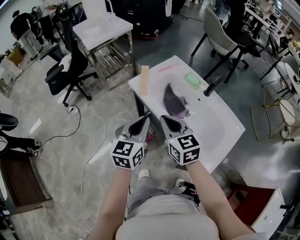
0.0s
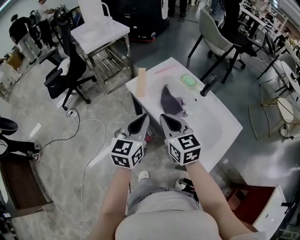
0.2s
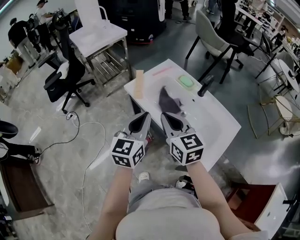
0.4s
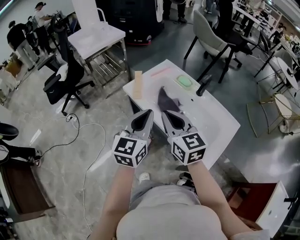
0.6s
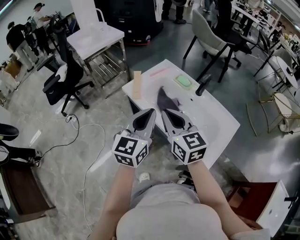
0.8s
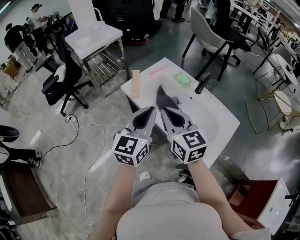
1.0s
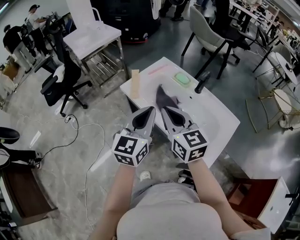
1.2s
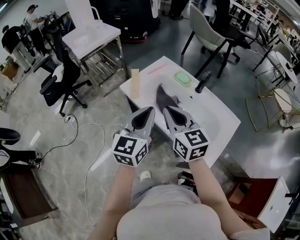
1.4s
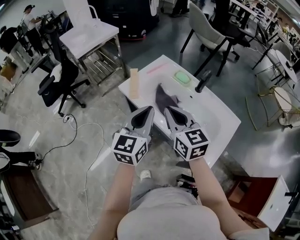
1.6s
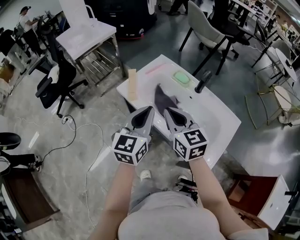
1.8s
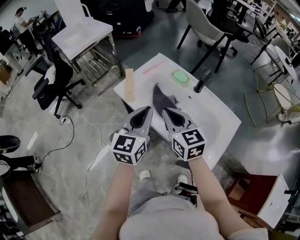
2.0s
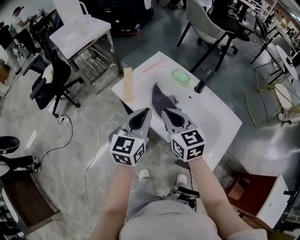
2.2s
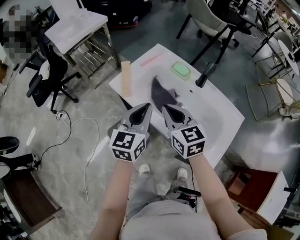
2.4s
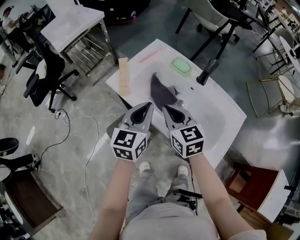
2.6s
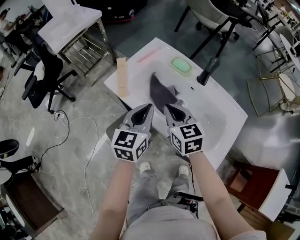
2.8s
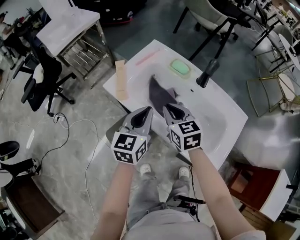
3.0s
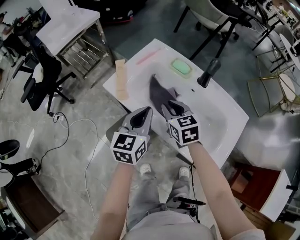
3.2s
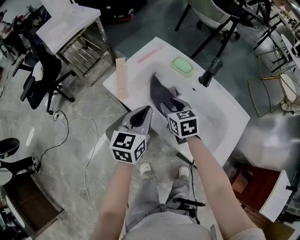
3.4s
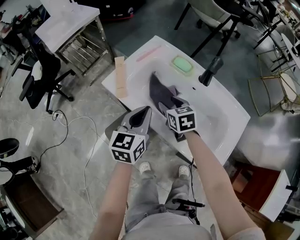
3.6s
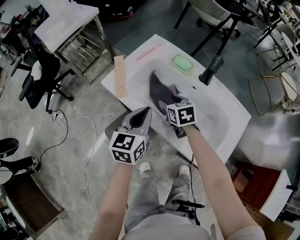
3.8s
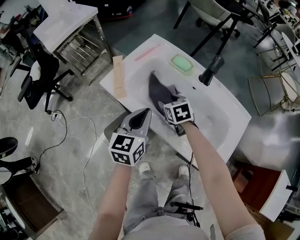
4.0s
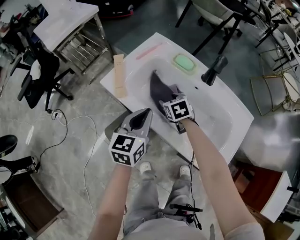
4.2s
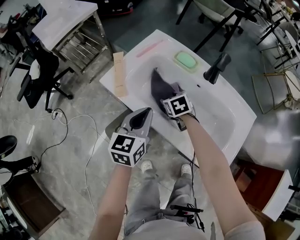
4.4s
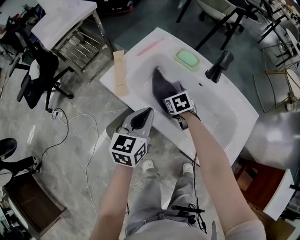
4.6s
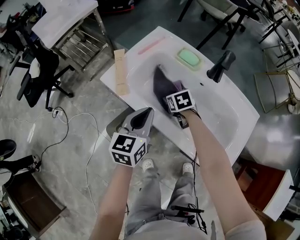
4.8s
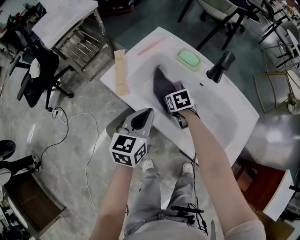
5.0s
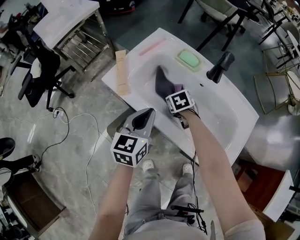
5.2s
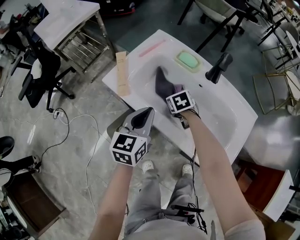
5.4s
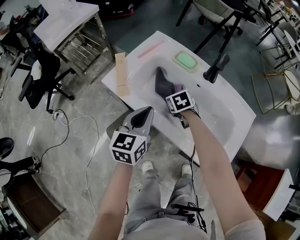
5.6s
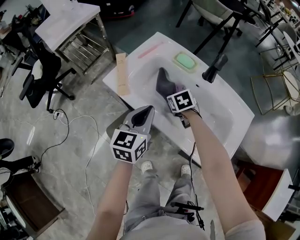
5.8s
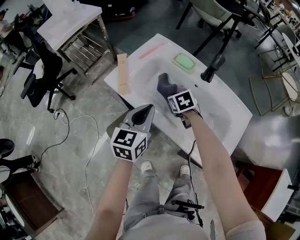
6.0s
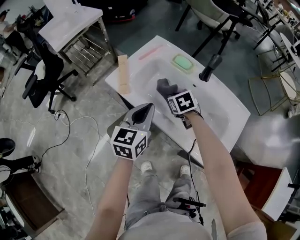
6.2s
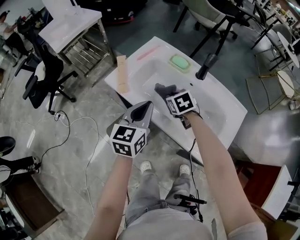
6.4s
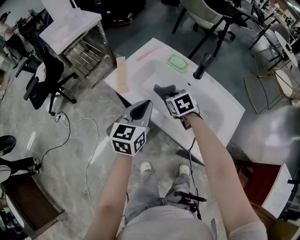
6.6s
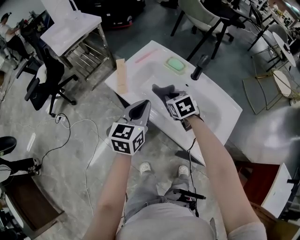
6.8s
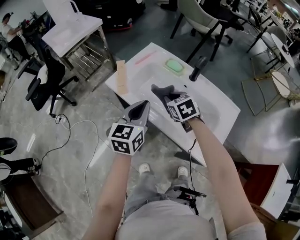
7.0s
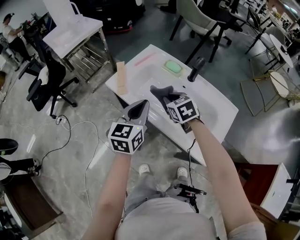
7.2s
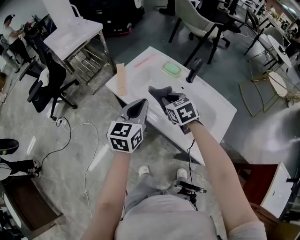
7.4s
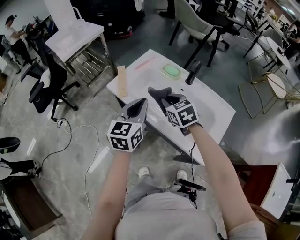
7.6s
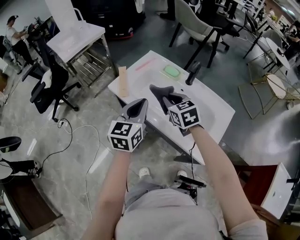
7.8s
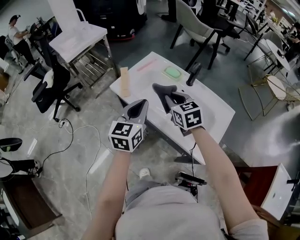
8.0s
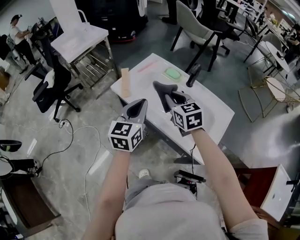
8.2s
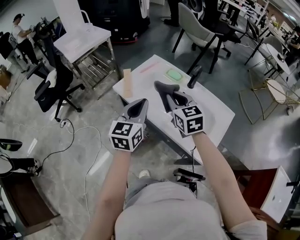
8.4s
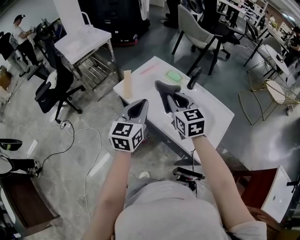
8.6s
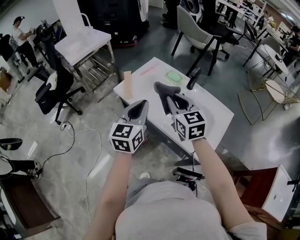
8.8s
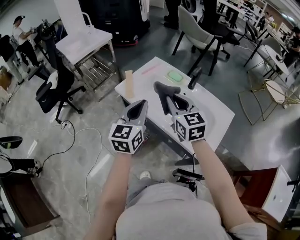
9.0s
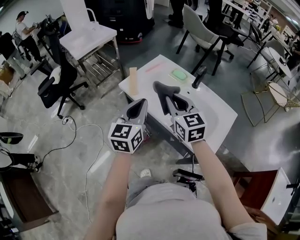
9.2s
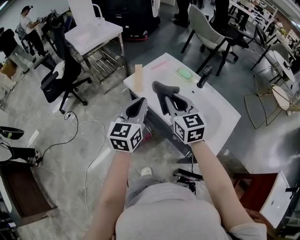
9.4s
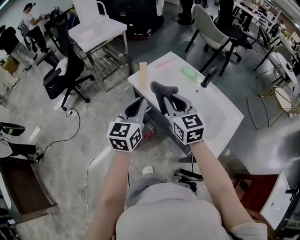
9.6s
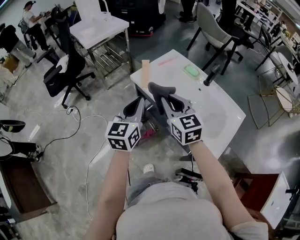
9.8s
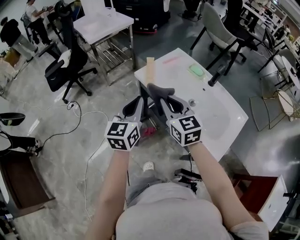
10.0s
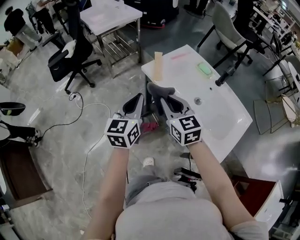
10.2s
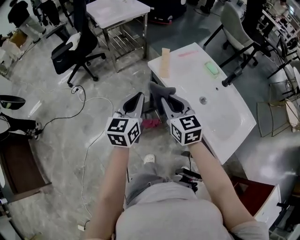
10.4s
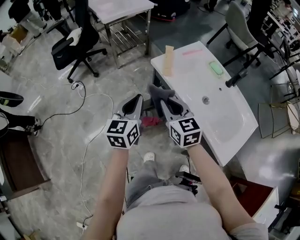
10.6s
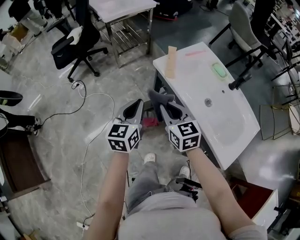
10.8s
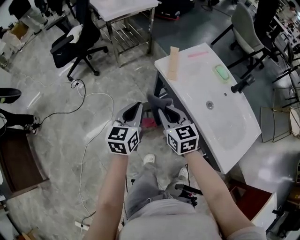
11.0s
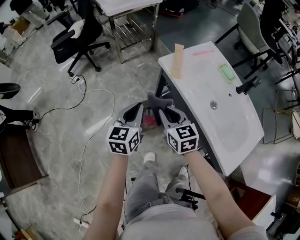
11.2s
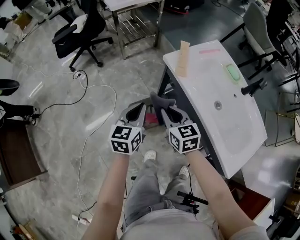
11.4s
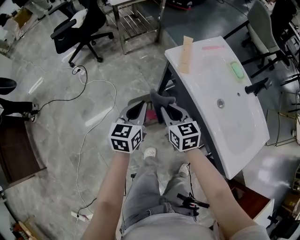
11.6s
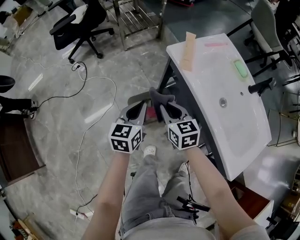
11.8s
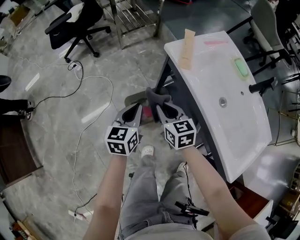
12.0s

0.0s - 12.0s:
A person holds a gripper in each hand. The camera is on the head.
0.0s - 1.6s: The left gripper travels upward by approximately 5 cm. The right gripper moves about 5 cm.
1.6s - 3.0s: The grippers both shift downward and forward by approximately 15 cm.
3.0s - 4.4s: The right gripper shifts roughly 20 cm downward and forward, rotates some 30 degrees, and opens its fingers, while the left gripper moves approximately 5 cm.
4.4s - 6.0s: The right gripper closes its fingers.
6.0s - 7.6s: The left gripper goes approximately 10 cm upward, while the right gripper moves upward and backward, roughly 20 cm, and turns by approximately 20 degrees.
7.6s - 9.0s: The right gripper goes roughly 10 cm upward and backward, and changes its angle by approximately 30 degrees. Meanwhile the left gripper changes place by about 5 cm.
9.0s - 10.4s: The left gripper is displaced to the left by approximately 15 cm; the right gripper shifts approximately 20 cm to the left and downward.
10.4s - 12.0s: Both grippers travel together downward, roughly 20 cm.

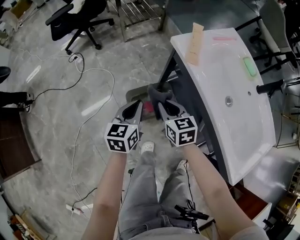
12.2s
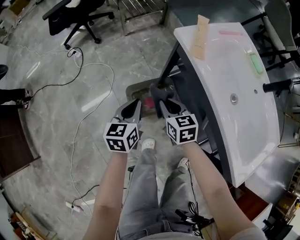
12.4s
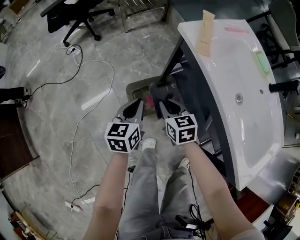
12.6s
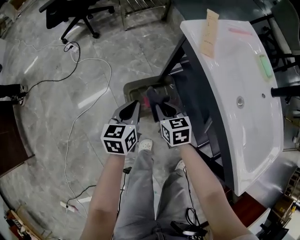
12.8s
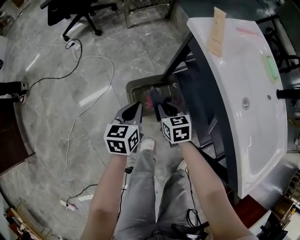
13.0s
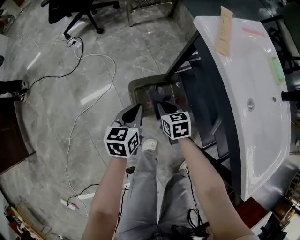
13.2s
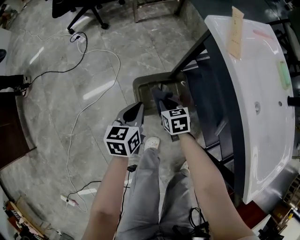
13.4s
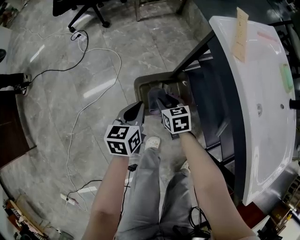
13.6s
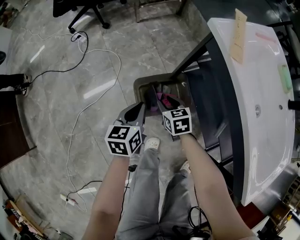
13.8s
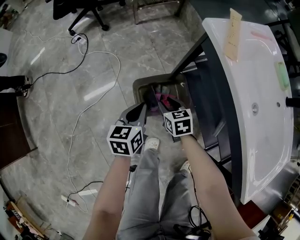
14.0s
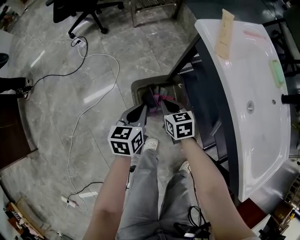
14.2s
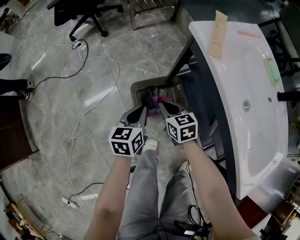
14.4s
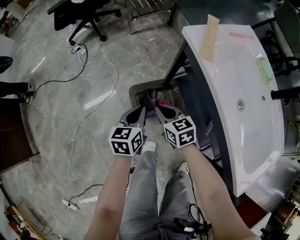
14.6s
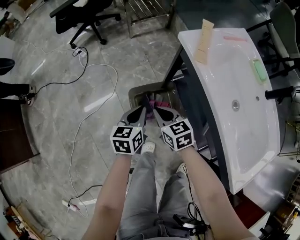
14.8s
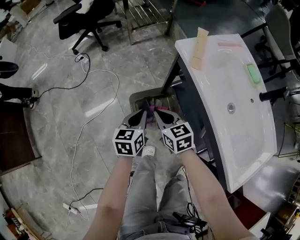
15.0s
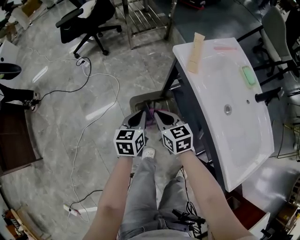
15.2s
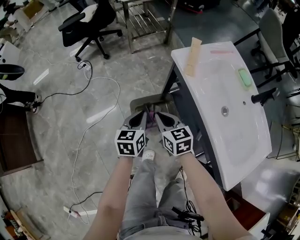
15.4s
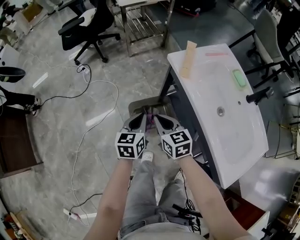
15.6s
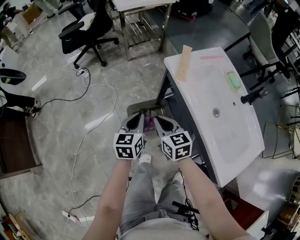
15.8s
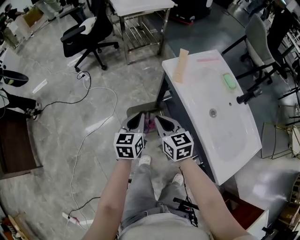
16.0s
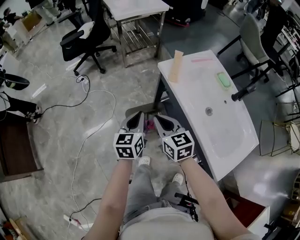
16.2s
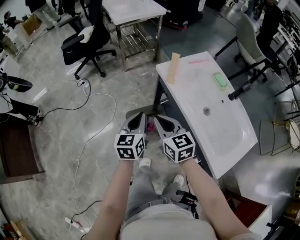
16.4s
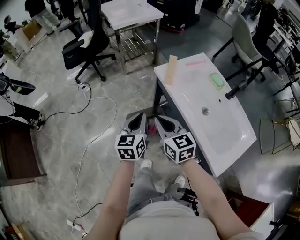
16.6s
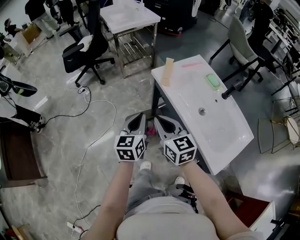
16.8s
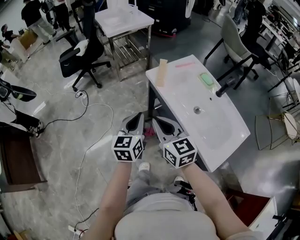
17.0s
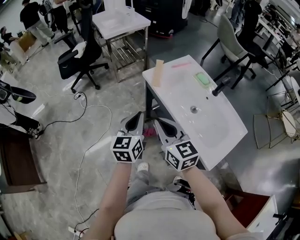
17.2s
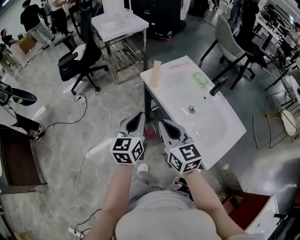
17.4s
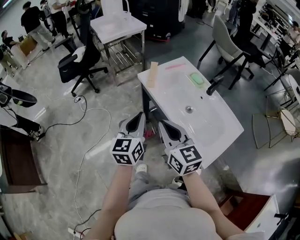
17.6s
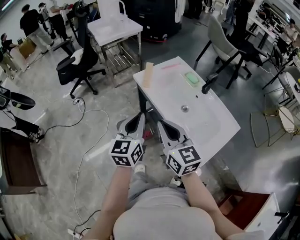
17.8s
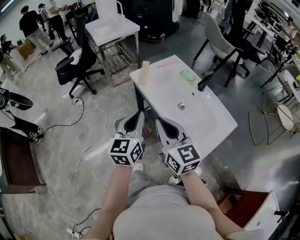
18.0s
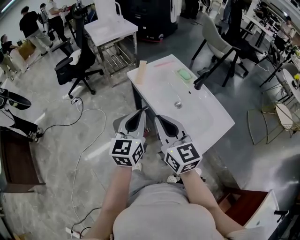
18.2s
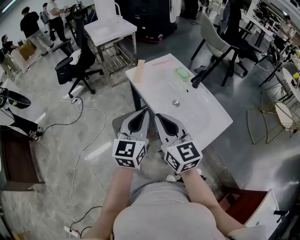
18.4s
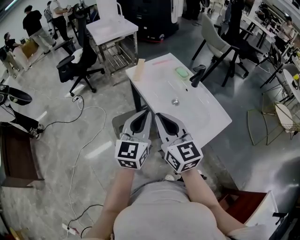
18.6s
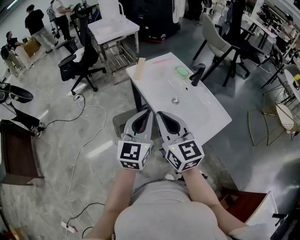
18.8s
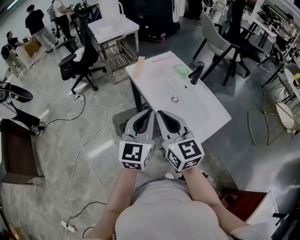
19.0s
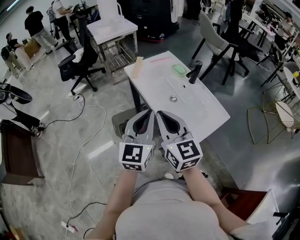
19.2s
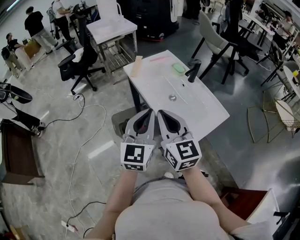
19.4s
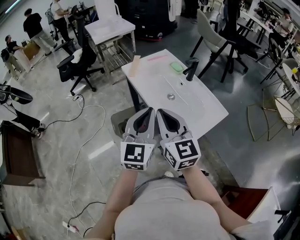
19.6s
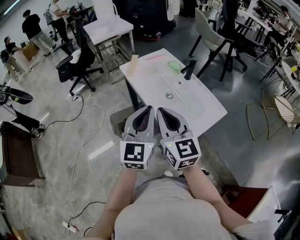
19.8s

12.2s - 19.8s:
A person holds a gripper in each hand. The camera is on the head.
12.2s - 13.8s: Both grippers travel together downward, approximately 15 cm. The right gripper opens.
13.8s - 15.2s: The left gripper travels upward by roughly 10 cm, while the right gripper shifts approximately 20 cm upward, and closes its fingers.
15.2s - 16.8s: The two grippers go some 20 cm upward. The right gripper turns by about 20 degrees.
16.8s - 18.2s: The right gripper travels to the right, backward and upward by about 20 cm; the left gripper shifts roughly 20 cm to the right, upward and backward.
18.2s - 19.8s: The grippers both shift to the right and backward by some 10 cm.

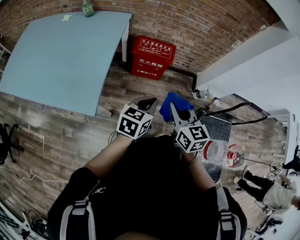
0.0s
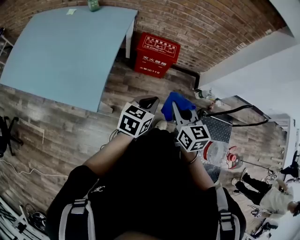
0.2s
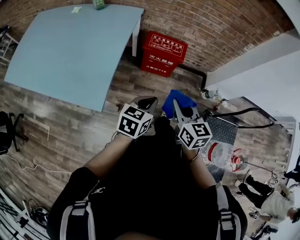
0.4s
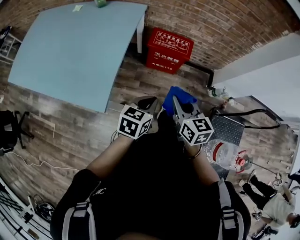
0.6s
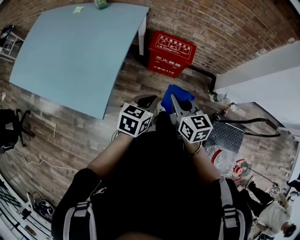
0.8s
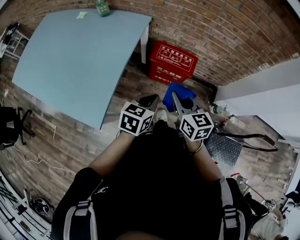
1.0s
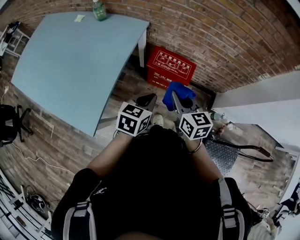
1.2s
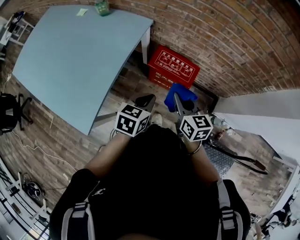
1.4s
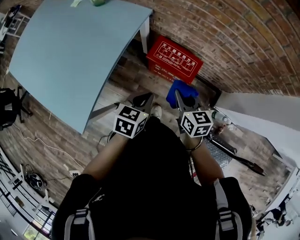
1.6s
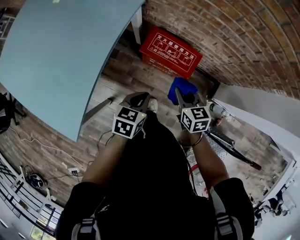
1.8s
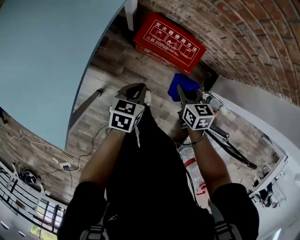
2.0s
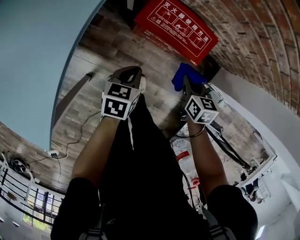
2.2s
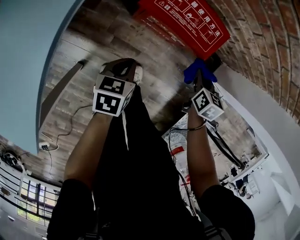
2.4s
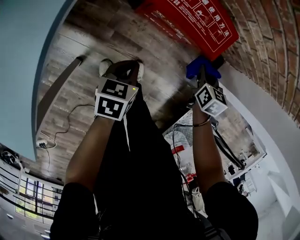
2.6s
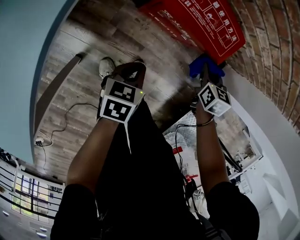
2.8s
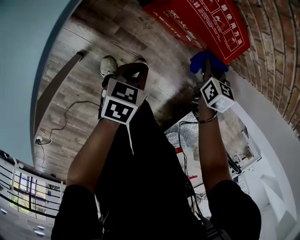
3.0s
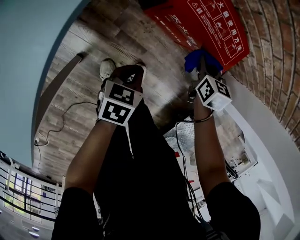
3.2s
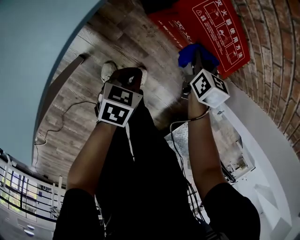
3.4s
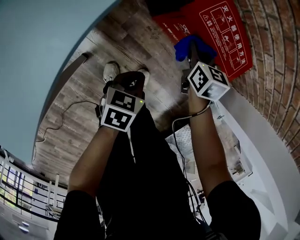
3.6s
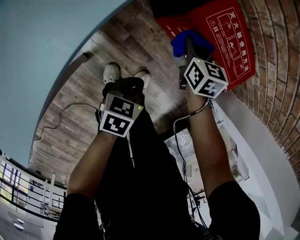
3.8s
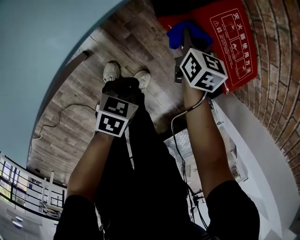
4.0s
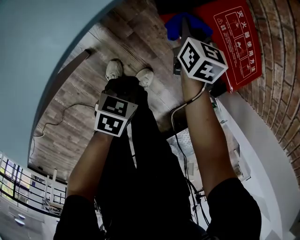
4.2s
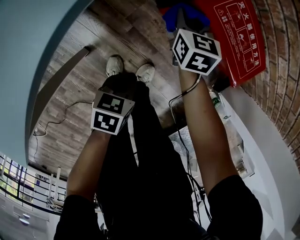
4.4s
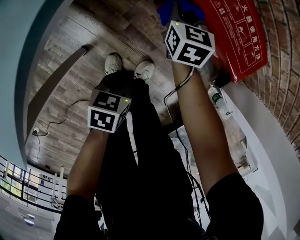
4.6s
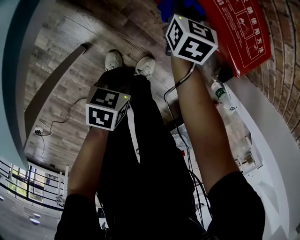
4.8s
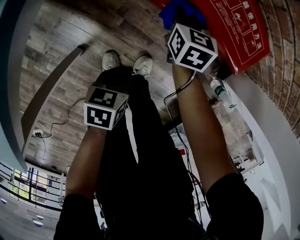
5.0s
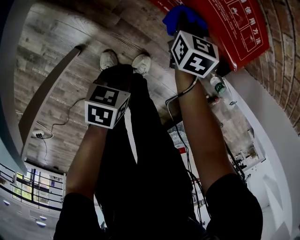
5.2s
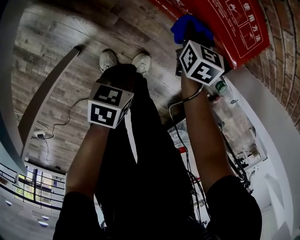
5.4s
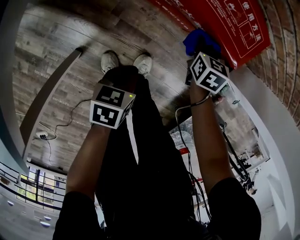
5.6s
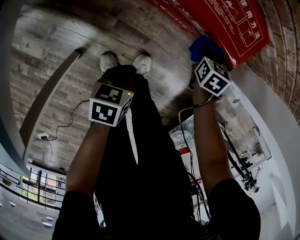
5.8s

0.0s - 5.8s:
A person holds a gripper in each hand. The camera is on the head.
0.0s - 1.4s: The two grippers go approximately 30 cm forward.
1.4s - 2.8s: Both grippers travel together downward, some 40 cm. The right gripper tilts its fingers roughly 30 degrees downward; the left gripper swivels about 20 degrees.
2.8s - 4.4s: The right gripper is displaced to the left by roughly 30 cm, and changes its angle by roughly 30 degrees. The left gripper moves backward, to the left and downward, approximately 10 cm.
4.4s - 5.8s: The left gripper travels to the right by about 5 cm. The right gripper moves to the right, approximately 30 cm, and rotates some 30 degrees.
